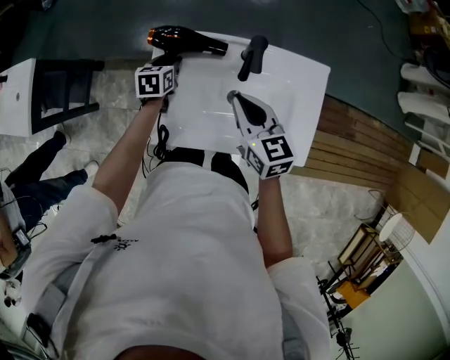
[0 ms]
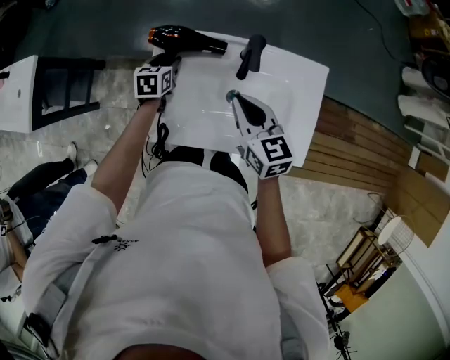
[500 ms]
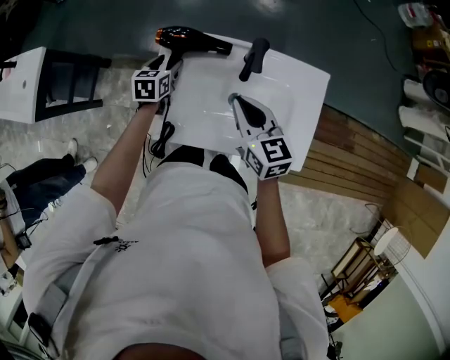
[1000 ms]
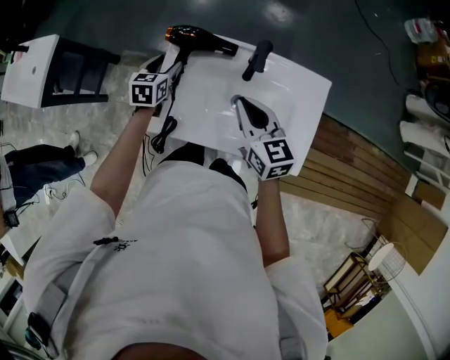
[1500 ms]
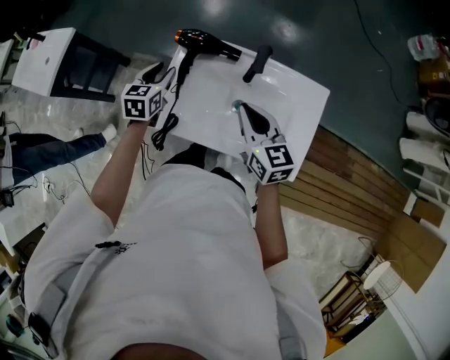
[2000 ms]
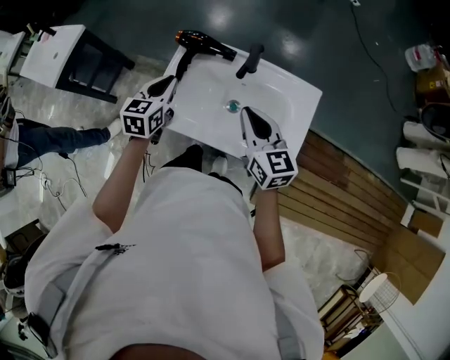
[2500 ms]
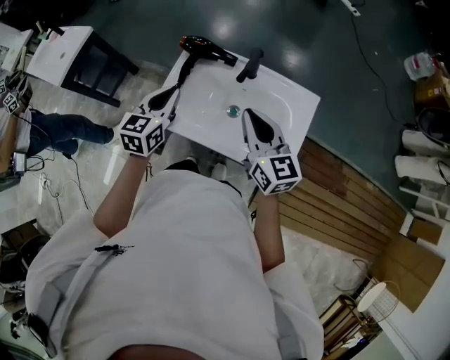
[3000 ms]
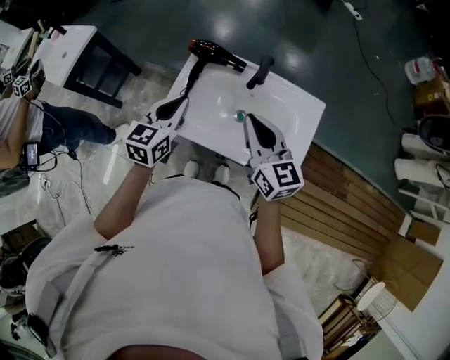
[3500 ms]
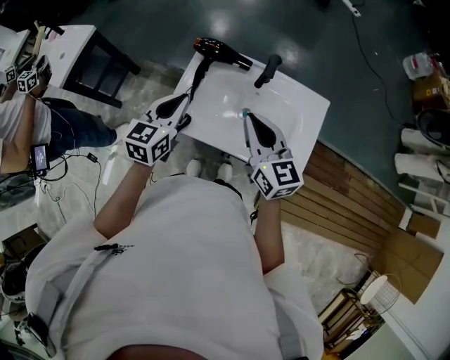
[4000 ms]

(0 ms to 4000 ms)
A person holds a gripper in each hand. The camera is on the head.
0 ms - 2000 ms: The left gripper moves upward and backward, roughly 15 cm. The right gripper heads backward, covering roughly 5 cm.
2000 ms - 4000 ms: The left gripper goes approximately 15 cm backward and upward, and closes, while the right gripper goes some 10 cm upward.

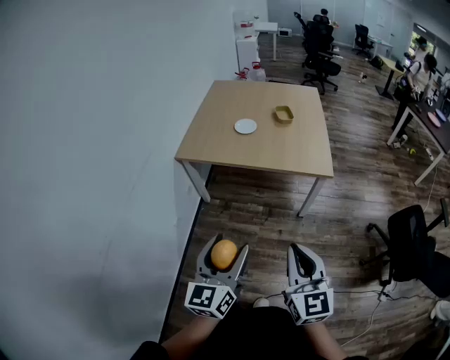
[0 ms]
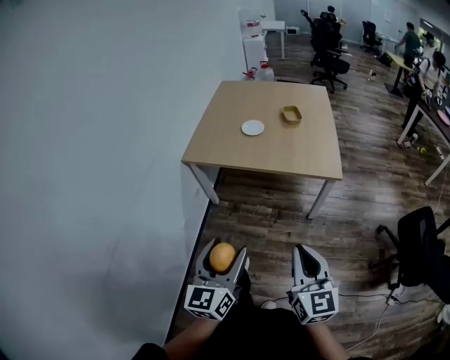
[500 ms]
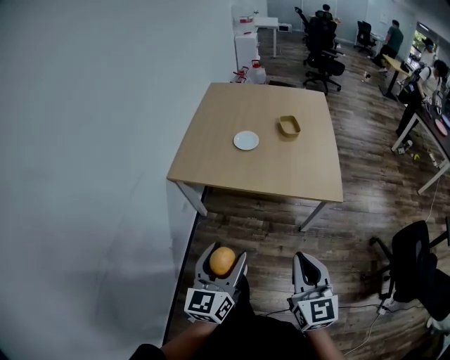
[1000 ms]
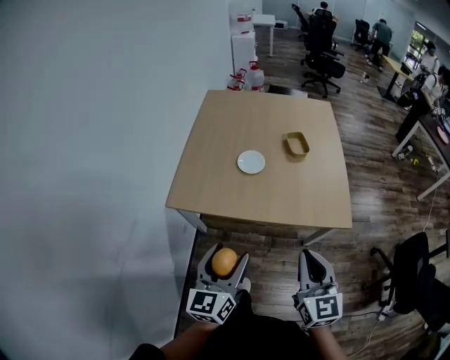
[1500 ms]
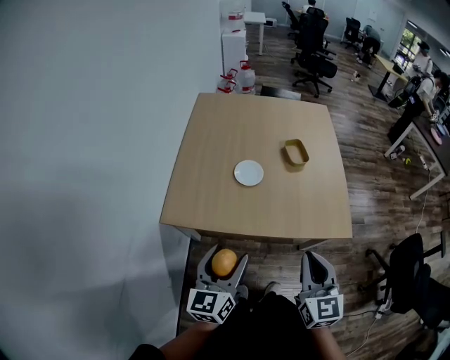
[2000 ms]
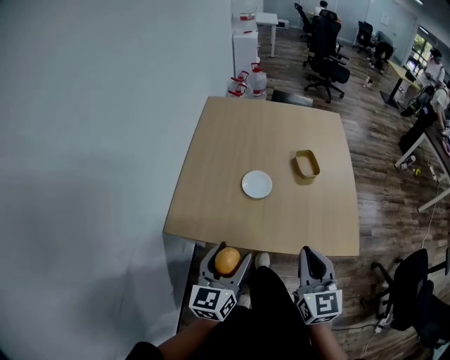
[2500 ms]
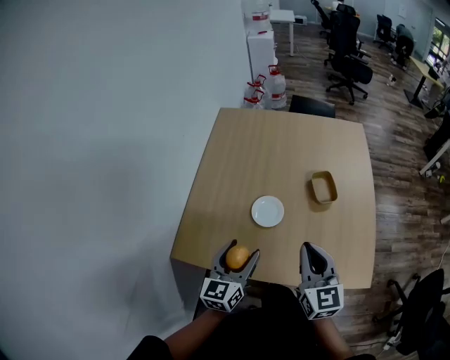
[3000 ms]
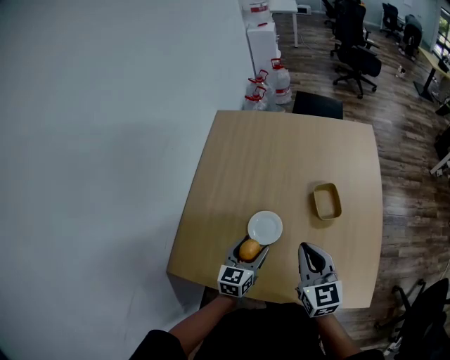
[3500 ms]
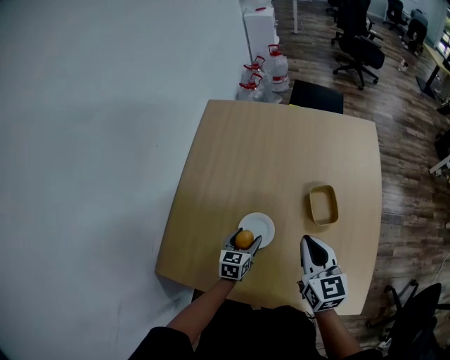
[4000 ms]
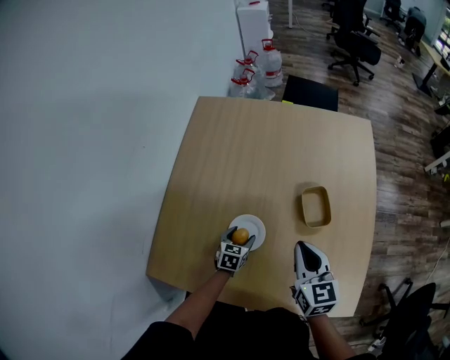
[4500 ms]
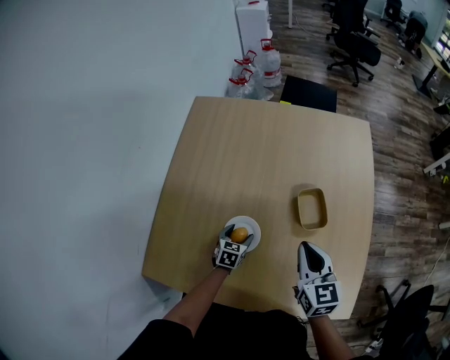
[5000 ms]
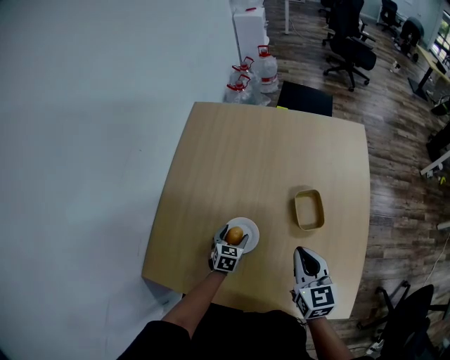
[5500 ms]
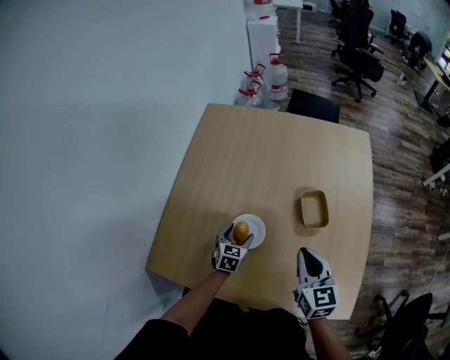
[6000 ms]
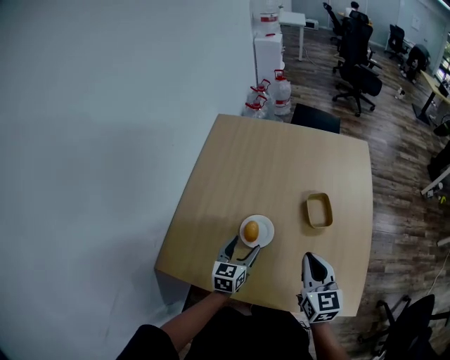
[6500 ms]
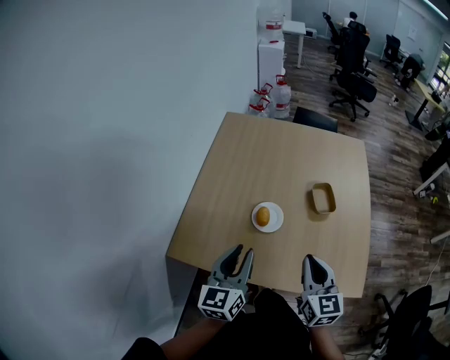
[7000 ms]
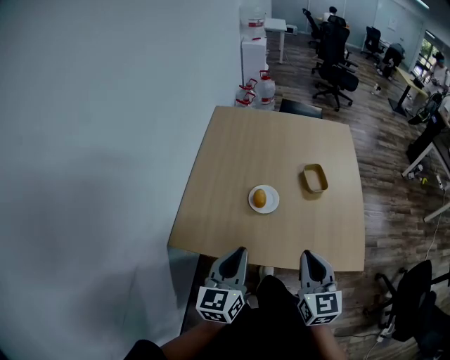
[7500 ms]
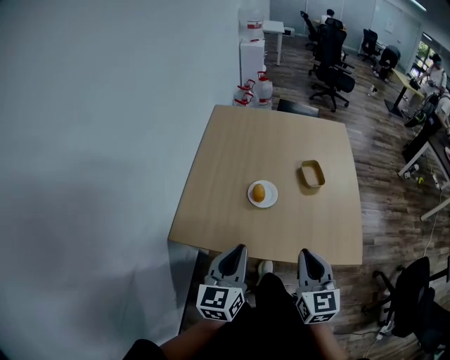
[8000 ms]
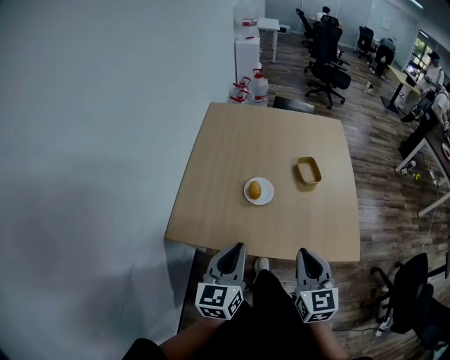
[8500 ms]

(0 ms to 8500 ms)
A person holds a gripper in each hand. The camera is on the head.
0 ms - 2000 ms: Both grippers move forward, approximately 40 cm.
2000 ms - 4000 ms: The two grippers travel together, forward, approximately 40 cm. The left gripper goes roughly 25 cm downward, and changes its angle by roughly 30 degrees.
4000 ms - 6500 ms: The left gripper moves upward and backward, roughly 10 cm. The right gripper heads backward, covering approximately 10 cm.
6500 ms - 8500 ms: The right gripper goes about 25 cm backward; the left gripper is displaced backward and upward by some 30 cm, and closes its fingers.

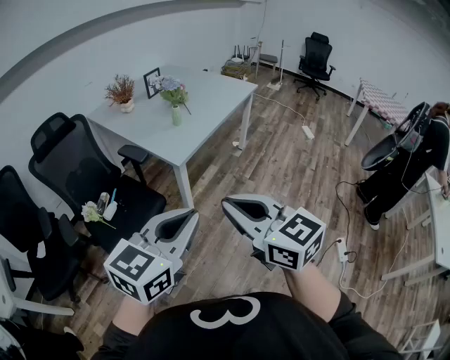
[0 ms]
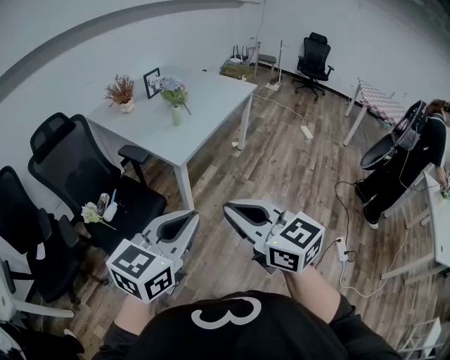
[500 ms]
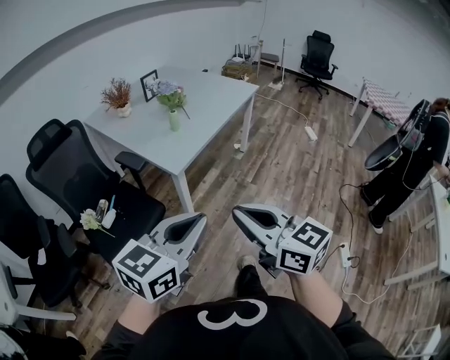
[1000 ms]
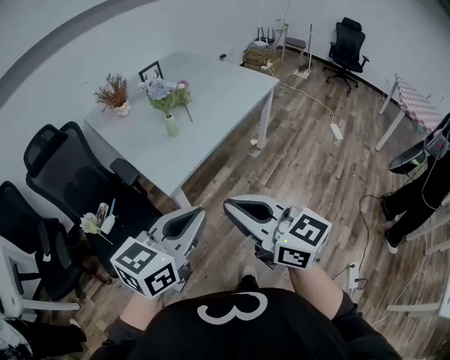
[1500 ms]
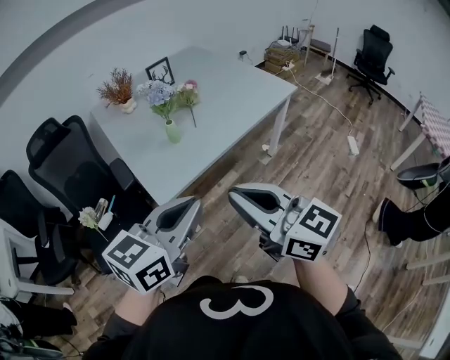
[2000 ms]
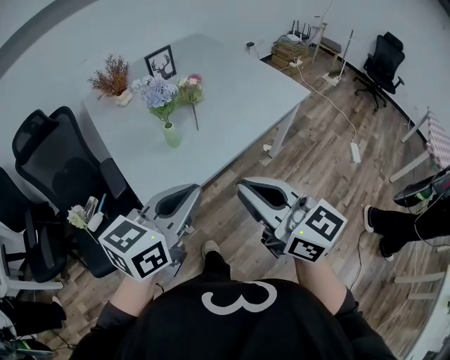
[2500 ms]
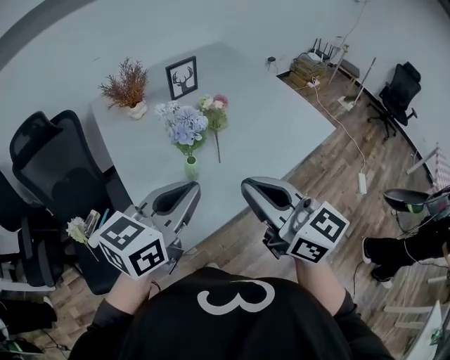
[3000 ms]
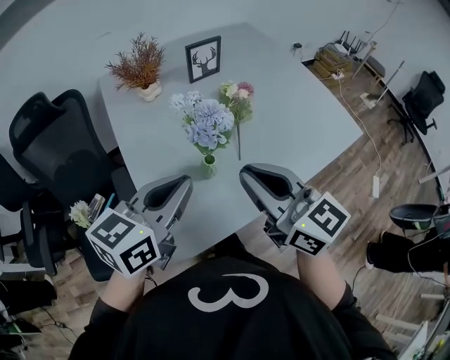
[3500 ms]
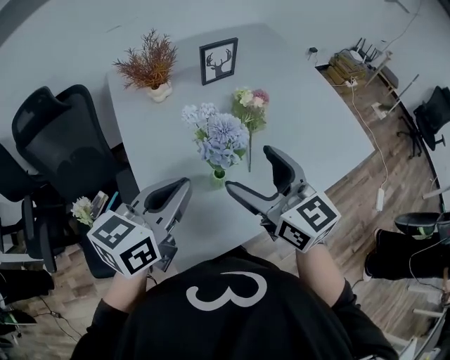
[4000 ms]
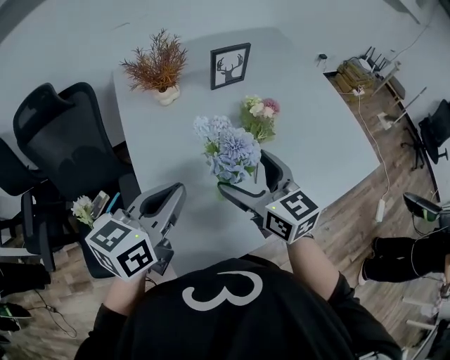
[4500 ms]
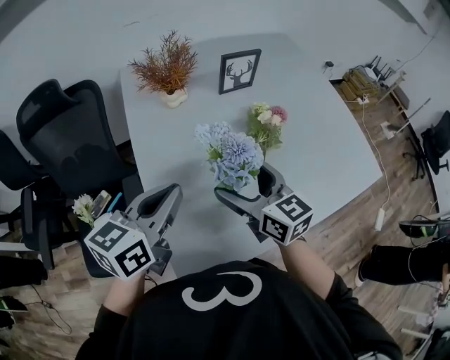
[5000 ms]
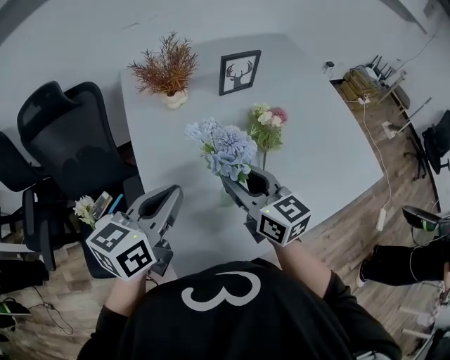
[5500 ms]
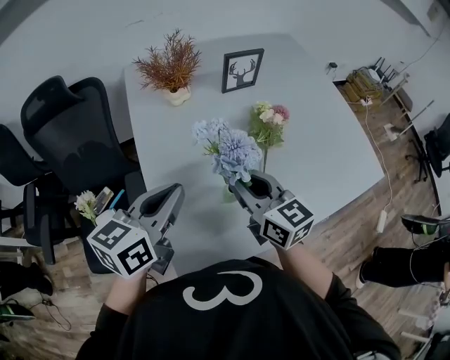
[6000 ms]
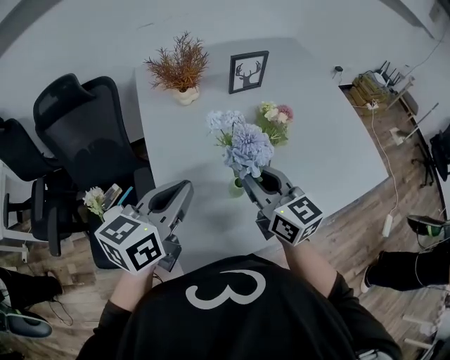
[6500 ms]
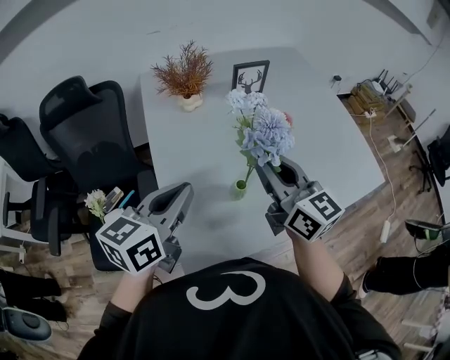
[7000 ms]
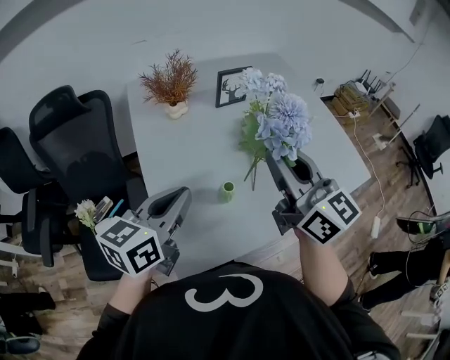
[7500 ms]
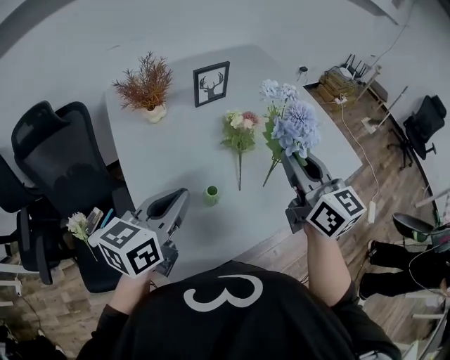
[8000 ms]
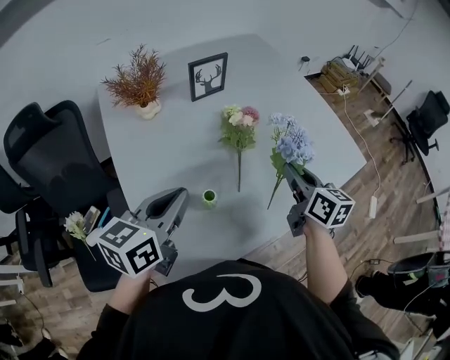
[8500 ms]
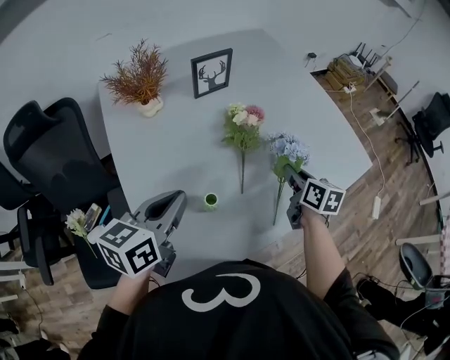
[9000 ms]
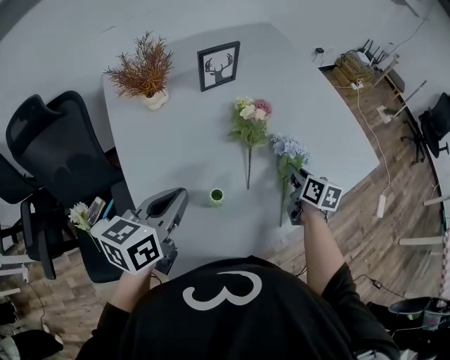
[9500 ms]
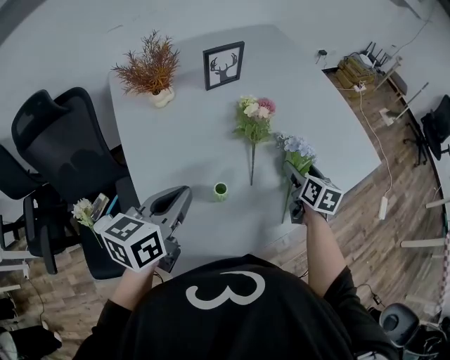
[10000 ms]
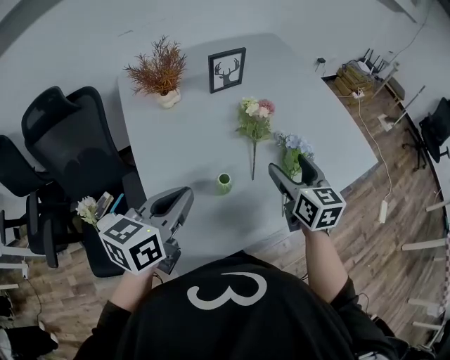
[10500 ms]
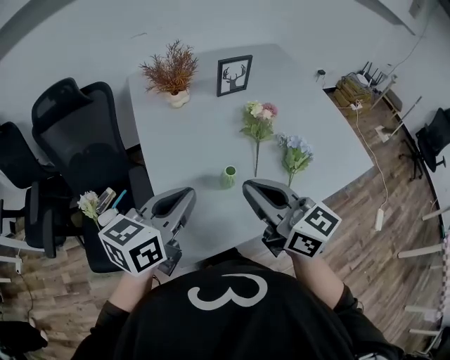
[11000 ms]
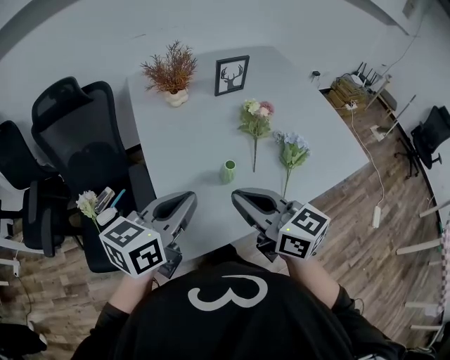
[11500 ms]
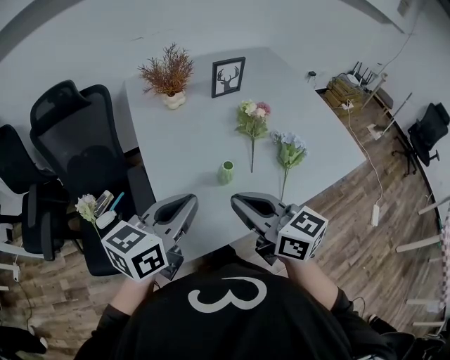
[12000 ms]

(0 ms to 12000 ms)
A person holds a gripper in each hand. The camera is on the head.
0 ms - 2000 ms: The two grippers go approximately 35 cm forward and to the right. The right gripper rotates approximately 20 degrees.
2000 ms - 4000 ms: The two grippers travel together, forward, about 40 cm. The right gripper opens.
4000 ms - 6000 ms: The right gripper moves downward, roughly 5 cm, and closes. The left gripper shifts by some 5 cm.
6000 ms - 8000 ms: The right gripper travels to the right and upward by approximately 20 cm, and turns by some 20 degrees; the left gripper goes approximately 5 cm to the right.
8000 ms - 10000 ms: The left gripper shifts about 5 cm downward. Meanwhile the right gripper is displaced downward by some 25 cm, tips its fingers downward by approximately 30 degrees, and opens.
10000 ms - 12000 ms: The right gripper is displaced to the left, backward and upward by roughly 40 cm, swivels about 50 degrees, and closes its fingers. The left gripper travels backward and upward by approximately 15 cm.

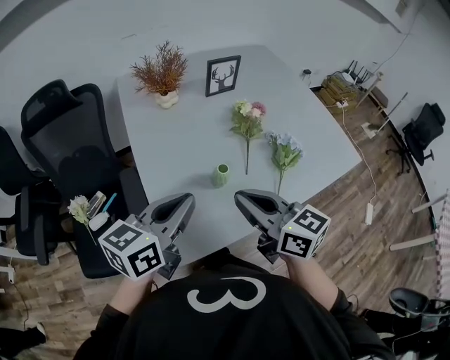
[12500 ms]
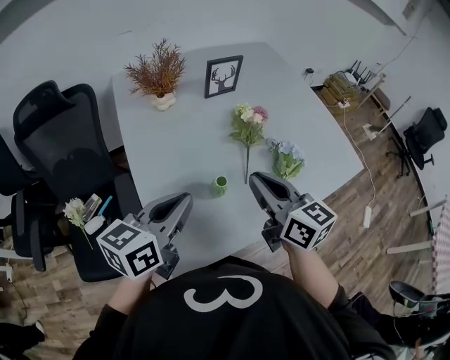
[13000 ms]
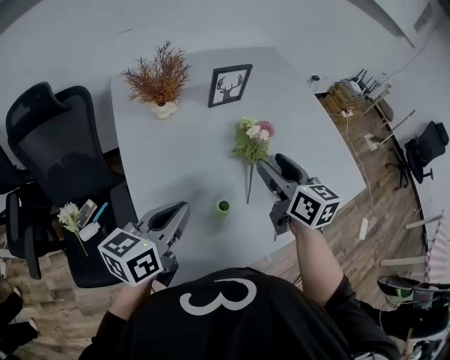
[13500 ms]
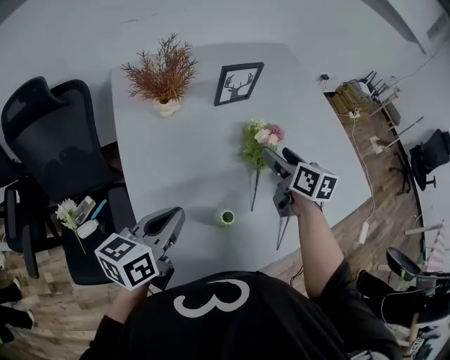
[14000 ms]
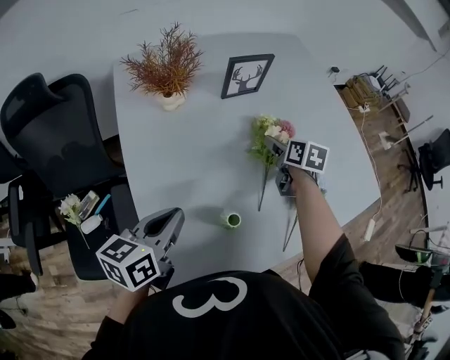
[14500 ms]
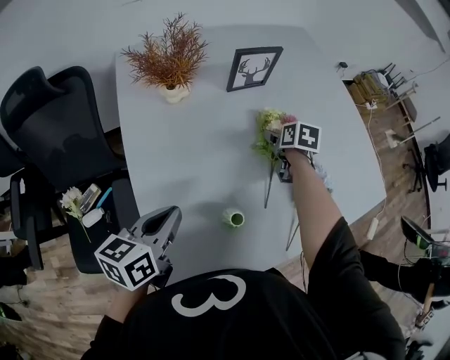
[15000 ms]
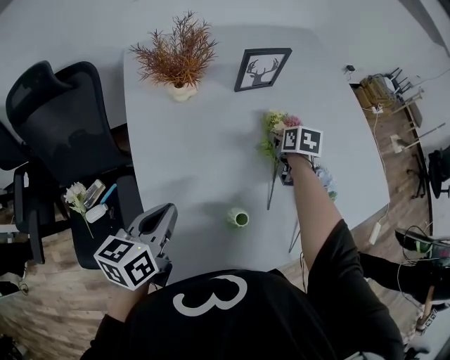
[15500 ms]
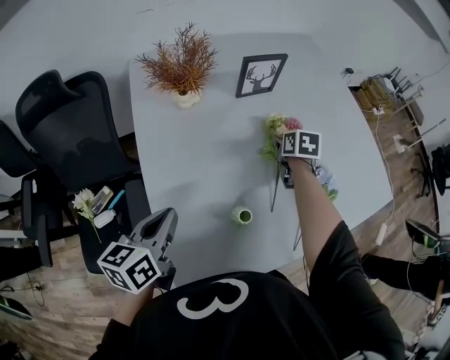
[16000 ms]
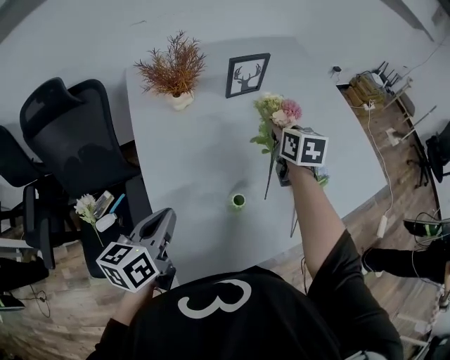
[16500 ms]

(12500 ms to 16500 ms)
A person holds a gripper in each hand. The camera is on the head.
12500 ms - 14500 ms: The right gripper goes about 40 cm forward and downward, tilts its fingers some 30 degrees downward, and opens up. Meanwhile the left gripper moves forward and downward, some 15 cm.
14500 ms - 16500 ms: The right gripper moves upward, about 10 cm, and closes its fingers. The left gripper moves backward, about 5 cm.
